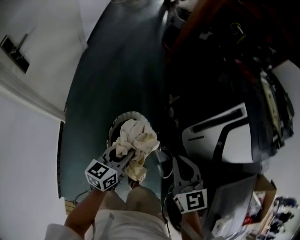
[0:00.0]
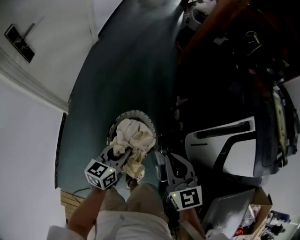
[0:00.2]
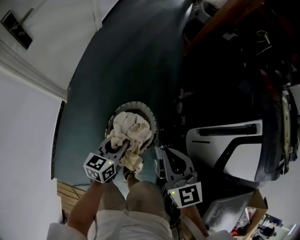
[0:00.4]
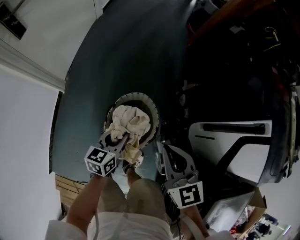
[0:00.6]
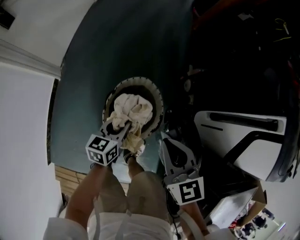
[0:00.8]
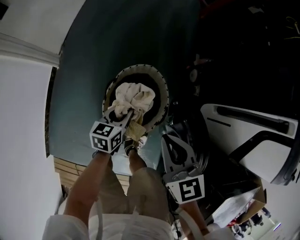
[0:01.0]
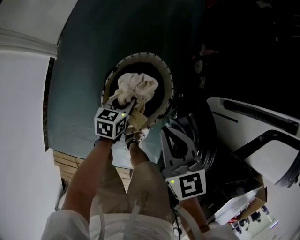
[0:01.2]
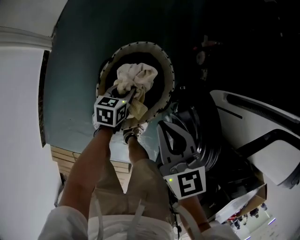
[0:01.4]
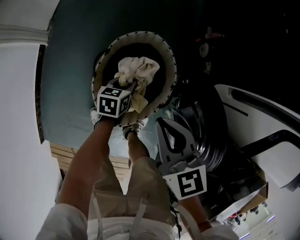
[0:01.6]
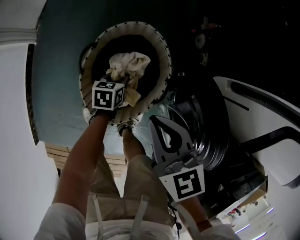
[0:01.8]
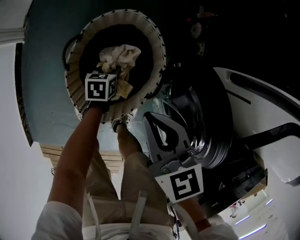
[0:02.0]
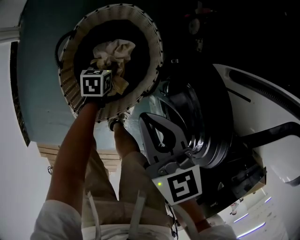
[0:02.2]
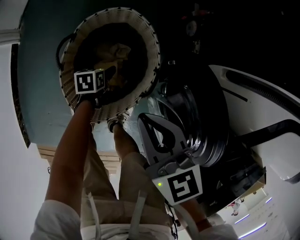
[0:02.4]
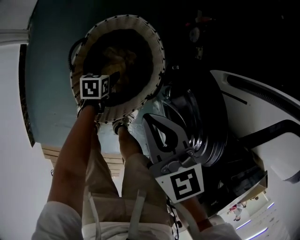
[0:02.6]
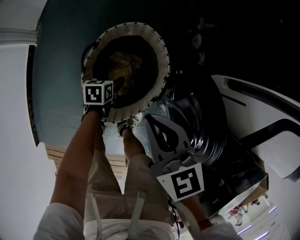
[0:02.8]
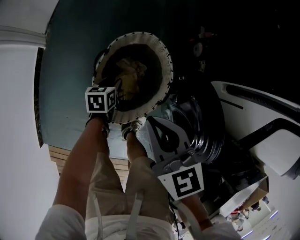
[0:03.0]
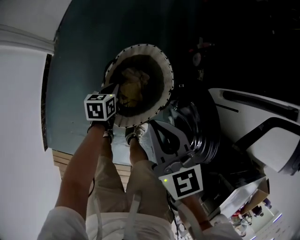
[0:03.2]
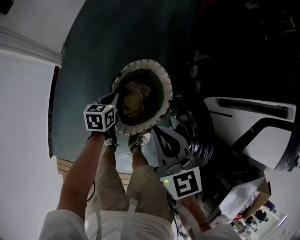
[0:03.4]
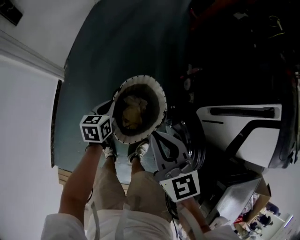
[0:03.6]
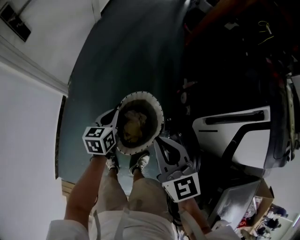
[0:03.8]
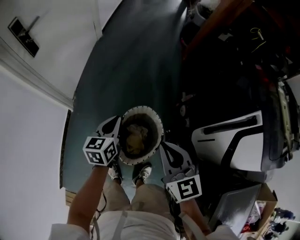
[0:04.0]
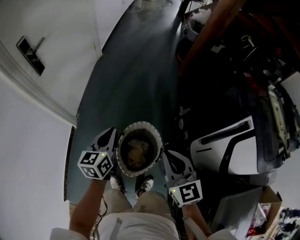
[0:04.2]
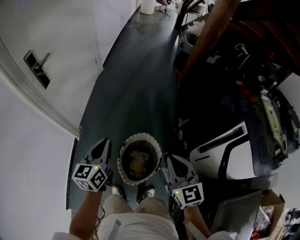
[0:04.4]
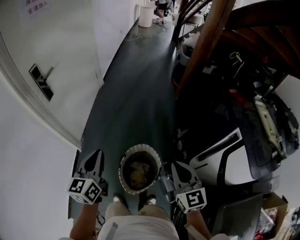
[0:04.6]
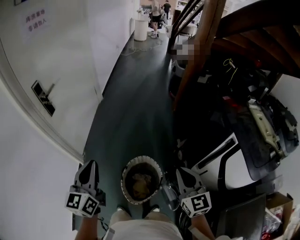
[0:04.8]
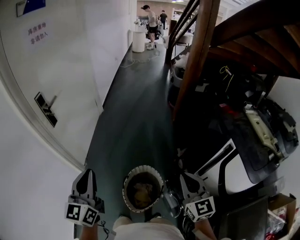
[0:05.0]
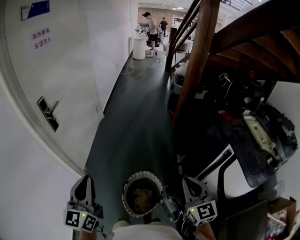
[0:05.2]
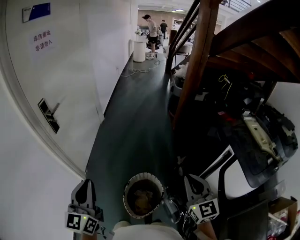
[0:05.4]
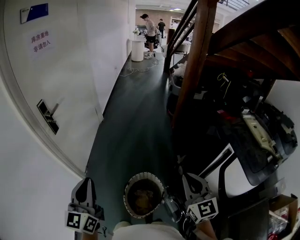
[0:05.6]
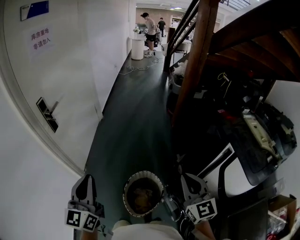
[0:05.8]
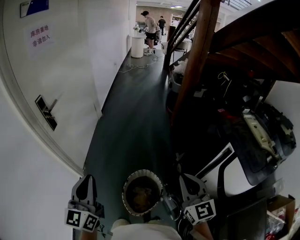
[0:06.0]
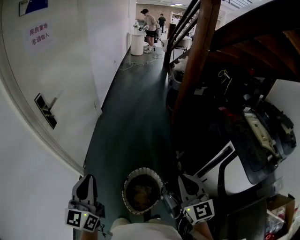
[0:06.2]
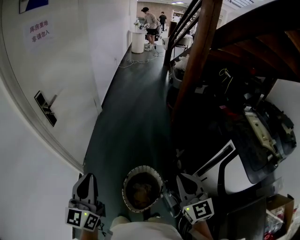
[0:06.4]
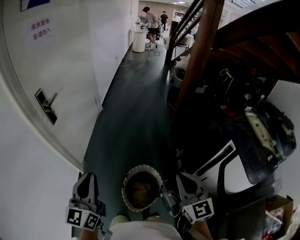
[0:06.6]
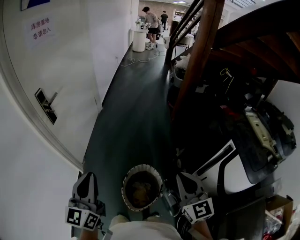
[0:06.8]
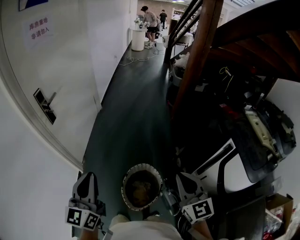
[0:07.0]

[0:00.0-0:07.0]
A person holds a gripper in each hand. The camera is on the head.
0.0 to 1.4 s: Both grippers travel together downward, roughly 35 cm. The right gripper rotates roughly 30 degrees, while the left gripper tilts its fingers some 30 degrees downward.
1.4 to 2.8 s: The left gripper goes about 10 cm downward, and opens up.
2.8 to 4.2 s: The right gripper is displaced upward by some 30 cm, and rotates roughly 20 degrees; the left gripper goes some 60 cm upward and to the left, tilts its fingers some 30 degrees upward, and closes.
4.2 to 5.6 s: The right gripper heads upward, covering roughly 20 cm, while the left gripper is displaced upward, to the left and backward by roughly 30 cm, and changes its angle by roughly 30 degrees.
5.6 to 7.0 s: The grippers move only a little.

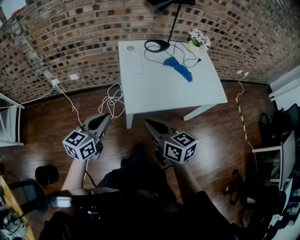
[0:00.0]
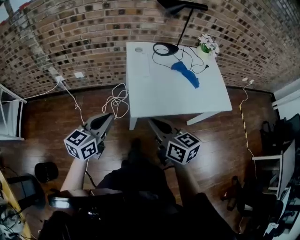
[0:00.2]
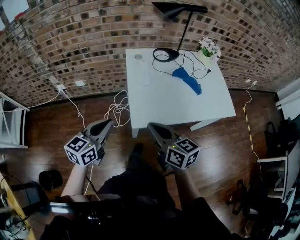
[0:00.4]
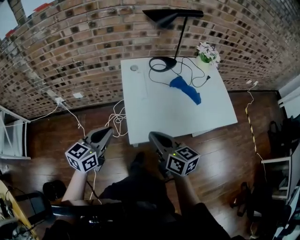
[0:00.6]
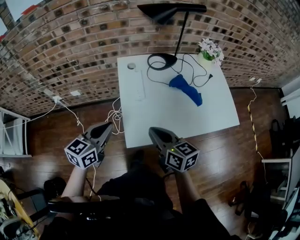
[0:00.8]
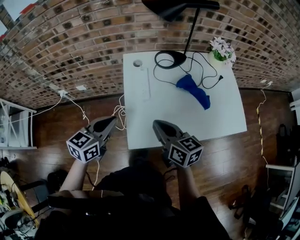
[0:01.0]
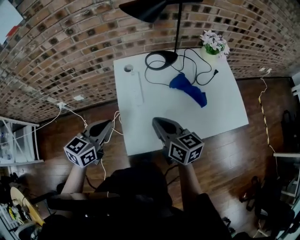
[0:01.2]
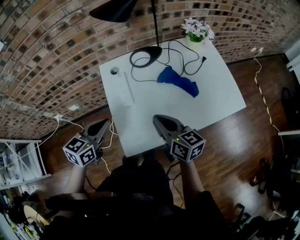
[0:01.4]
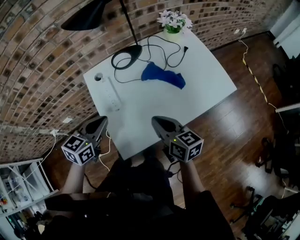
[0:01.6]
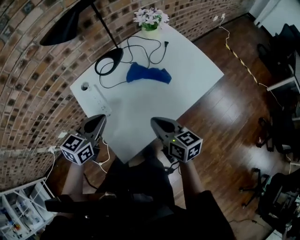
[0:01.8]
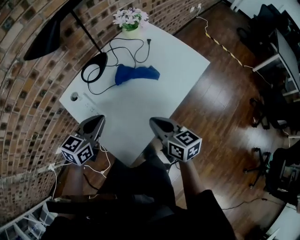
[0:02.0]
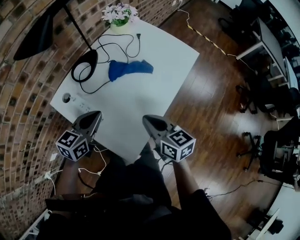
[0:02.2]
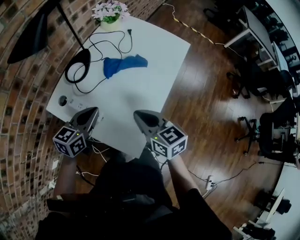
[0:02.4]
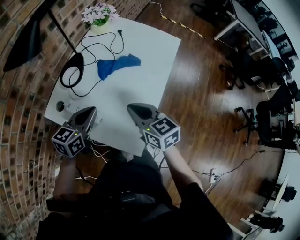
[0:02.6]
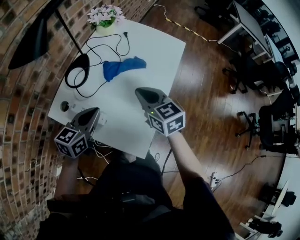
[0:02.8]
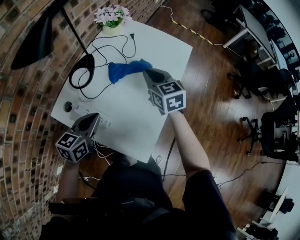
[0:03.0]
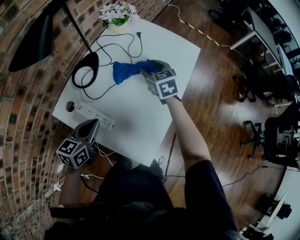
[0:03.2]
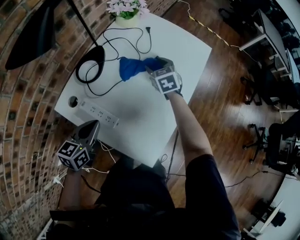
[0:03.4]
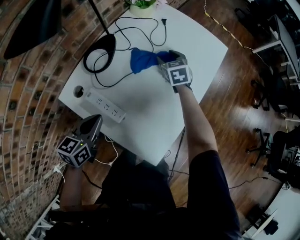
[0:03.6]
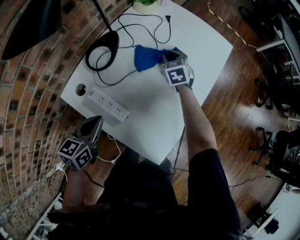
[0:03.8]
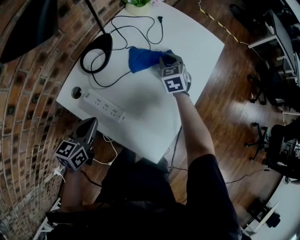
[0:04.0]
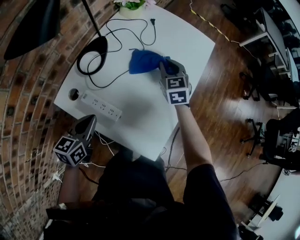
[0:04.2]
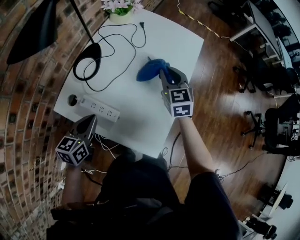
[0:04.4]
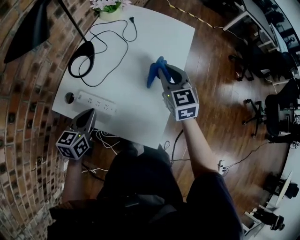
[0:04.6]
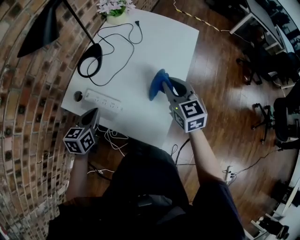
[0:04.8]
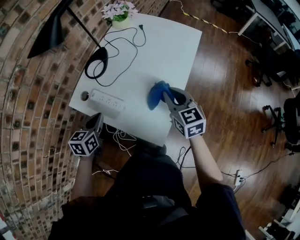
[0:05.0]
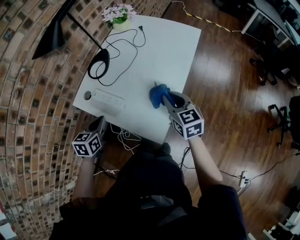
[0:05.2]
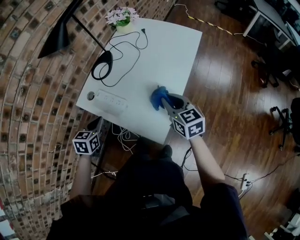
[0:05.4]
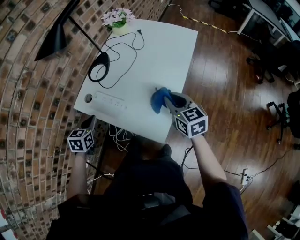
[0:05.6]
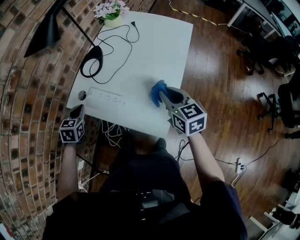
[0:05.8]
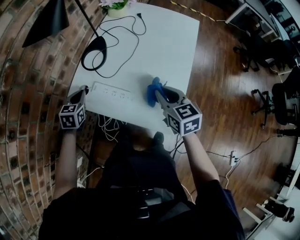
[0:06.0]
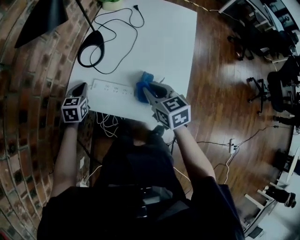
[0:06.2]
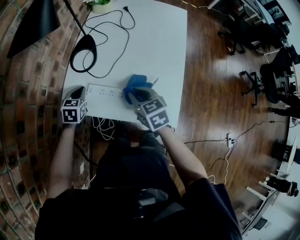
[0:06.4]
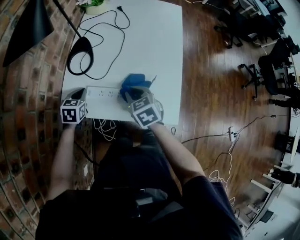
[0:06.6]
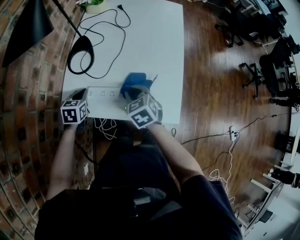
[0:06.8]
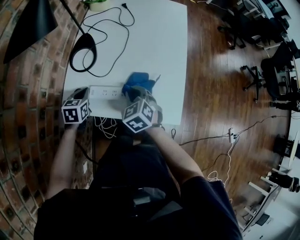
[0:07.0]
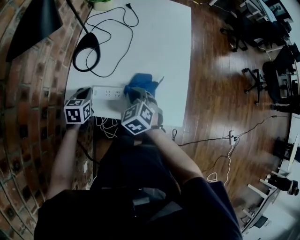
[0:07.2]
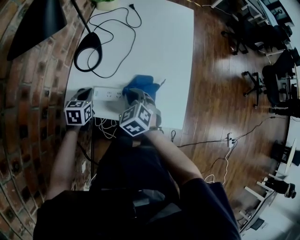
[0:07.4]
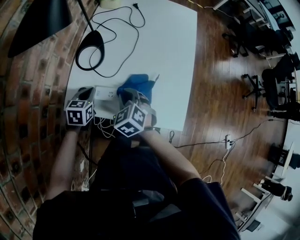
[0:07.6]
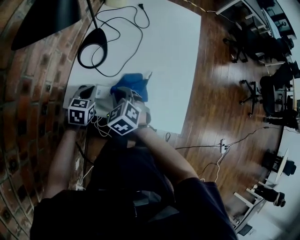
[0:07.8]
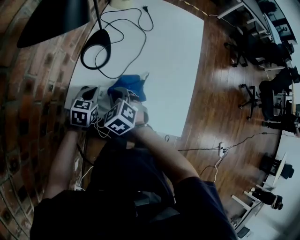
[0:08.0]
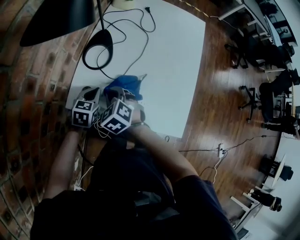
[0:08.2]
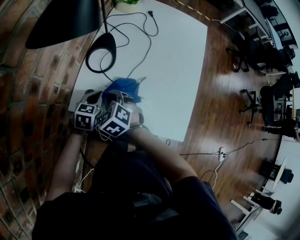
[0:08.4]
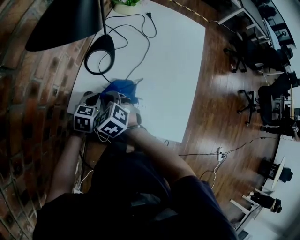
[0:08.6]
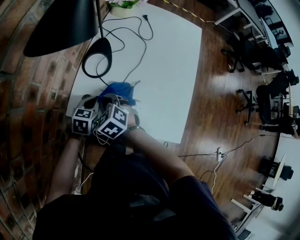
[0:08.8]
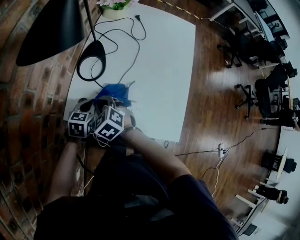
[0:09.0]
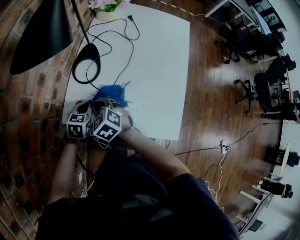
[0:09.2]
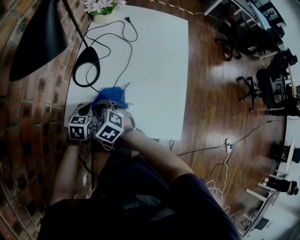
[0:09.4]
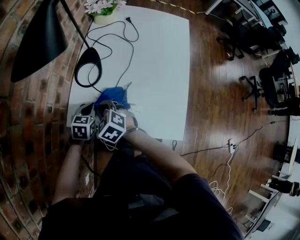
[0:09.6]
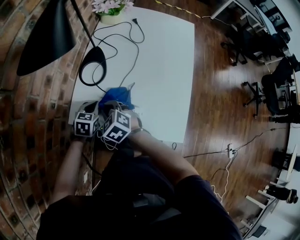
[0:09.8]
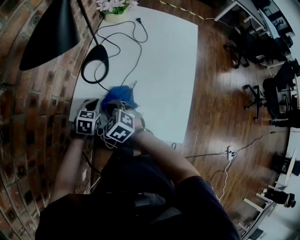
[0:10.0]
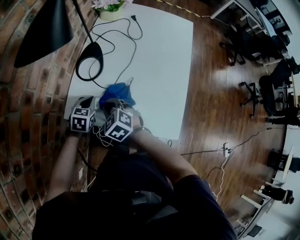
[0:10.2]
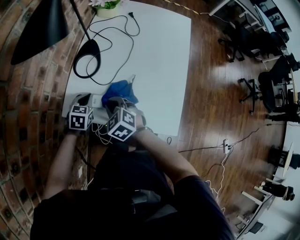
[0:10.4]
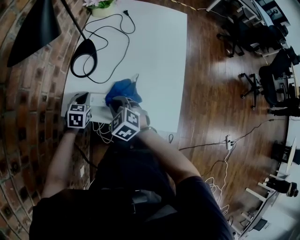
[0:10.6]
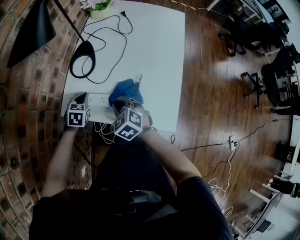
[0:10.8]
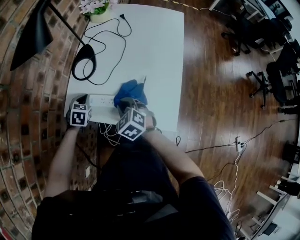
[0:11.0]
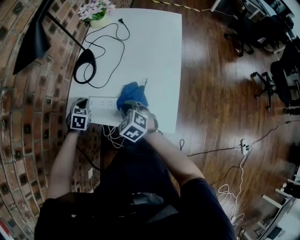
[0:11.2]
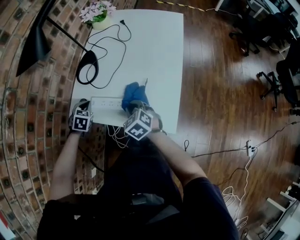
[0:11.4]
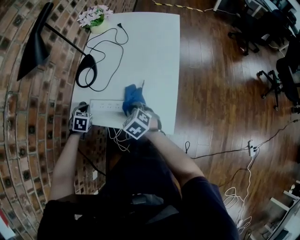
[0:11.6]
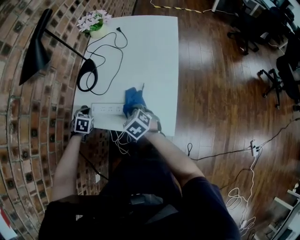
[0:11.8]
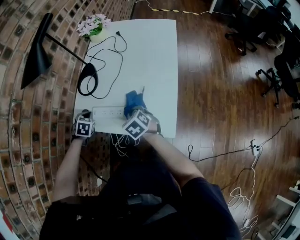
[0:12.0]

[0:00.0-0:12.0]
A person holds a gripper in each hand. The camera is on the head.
0.0 to 1.6 s: Both grippers travel together forward and to the right, some 30 cm. The right gripper changes its angle by about 20 degrees. Meanwhile the left gripper turns by approximately 30 degrees.
1.6 to 3.0 s: The left gripper changes place by some 10 cm, and changes its angle by roughly 30 degrees. The right gripper changes place by some 15 cm, and turns by some 50 degrees.
3.0 to 4.4 s: The right gripper goes downward and returns, some 20 cm each way, and opens, then closes once more, while the left gripper moves to the left, roughly 5 cm.
4.4 to 6.0 s: The left gripper goes some 15 cm to the left and forward, and turns by about 30 degrees. The right gripper moves backward and to the left, about 20 cm, and turns by roughly 20 degrees.
6.0 to 7.6 s: The right gripper heads to the left and downward, covering some 20 cm, and rotates about 30 degrees. The left gripper goes approximately 5 cm downward.
7.6 to 9.0 s: The right gripper travels to the left by some 10 cm.
9.0 to 10.4 s: The right gripper moves to the right, roughly 5 cm.
10.4 to 12.0 s: The right gripper moves to the right and backward, some 15 cm; the left gripper swivels roughly 20 degrees.

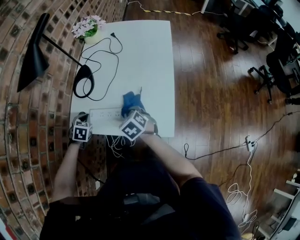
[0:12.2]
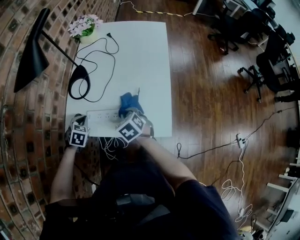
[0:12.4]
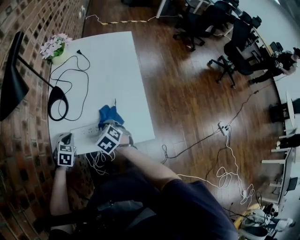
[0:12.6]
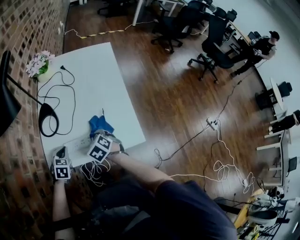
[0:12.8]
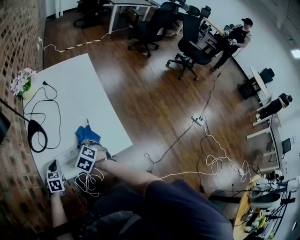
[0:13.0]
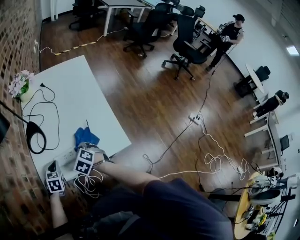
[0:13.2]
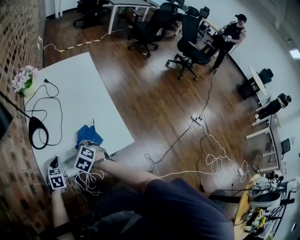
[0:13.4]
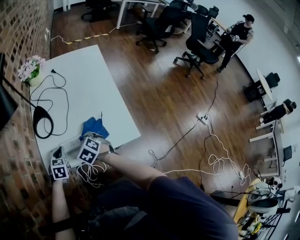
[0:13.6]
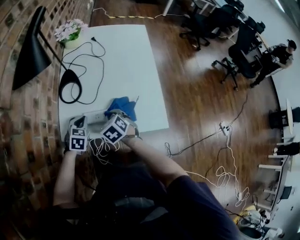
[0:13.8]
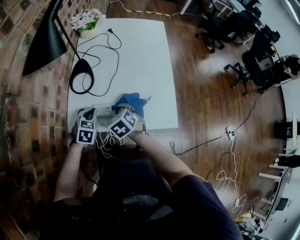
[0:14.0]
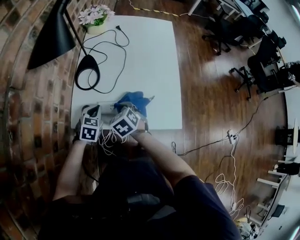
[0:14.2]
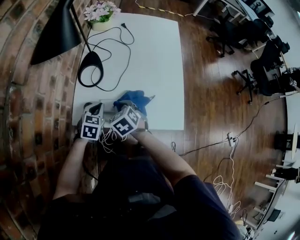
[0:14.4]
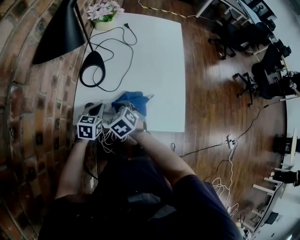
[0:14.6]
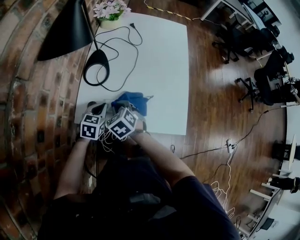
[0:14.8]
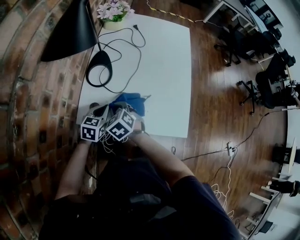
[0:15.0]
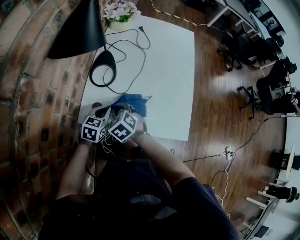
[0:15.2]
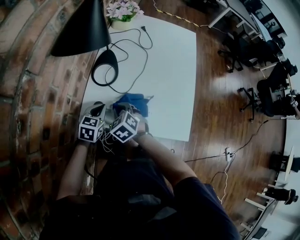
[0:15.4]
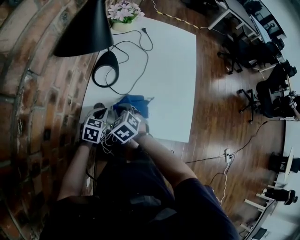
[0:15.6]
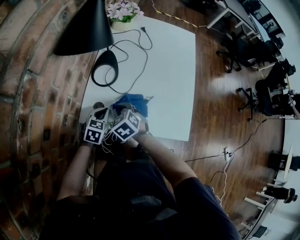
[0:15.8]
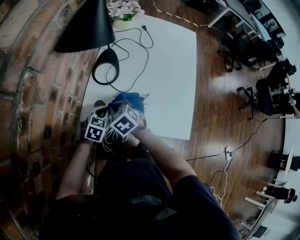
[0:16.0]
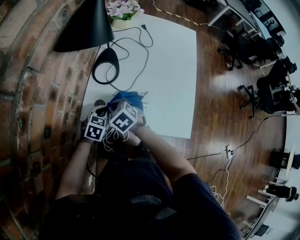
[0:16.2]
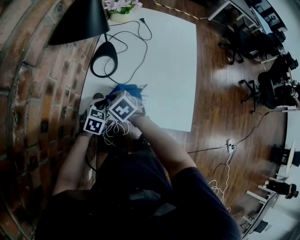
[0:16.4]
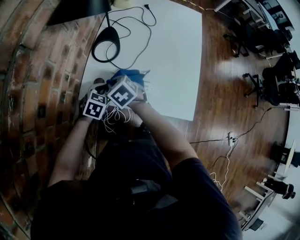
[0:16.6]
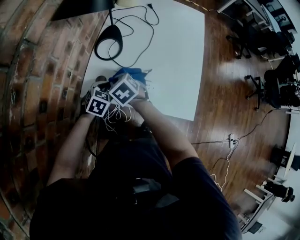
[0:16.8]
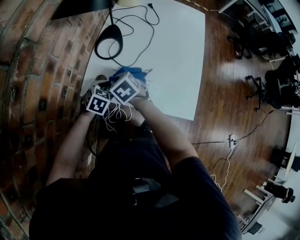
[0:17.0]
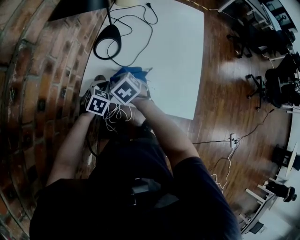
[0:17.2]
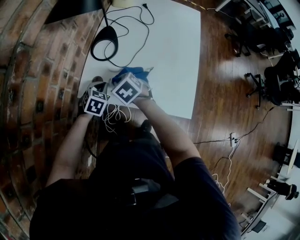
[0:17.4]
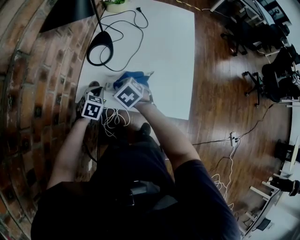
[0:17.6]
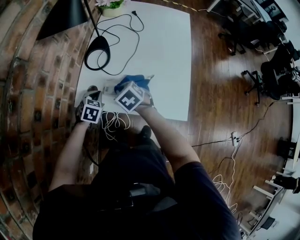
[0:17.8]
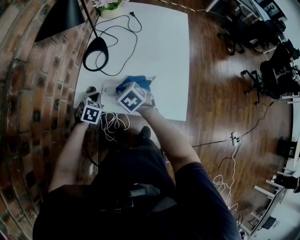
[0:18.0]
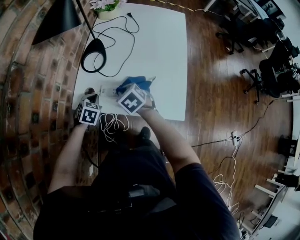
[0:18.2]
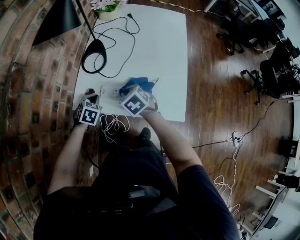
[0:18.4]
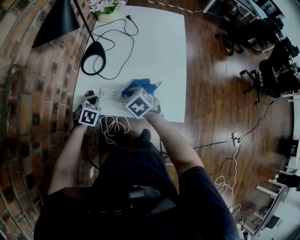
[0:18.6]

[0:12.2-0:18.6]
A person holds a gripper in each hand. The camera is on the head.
12.2 to 13.8 s: The left gripper swivels roughly 20 degrees, while the right gripper travels to the left by about 5 cm.
13.8 to 15.4 s: The left gripper heads to the left, covering some 5 cm; the right gripper goes approximately 10 cm to the left.
15.4 to 17.0 s: The grippers make only small movements.
17.0 to 18.6 s: The right gripper is displaced to the right and backward by about 15 cm.
